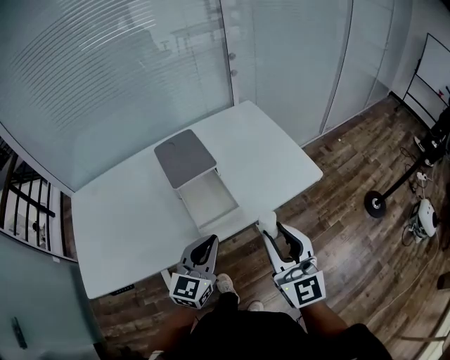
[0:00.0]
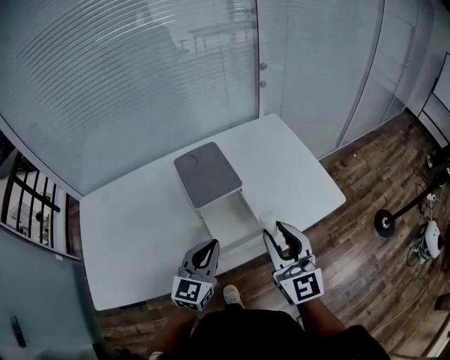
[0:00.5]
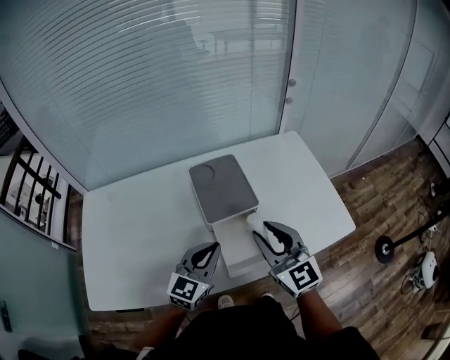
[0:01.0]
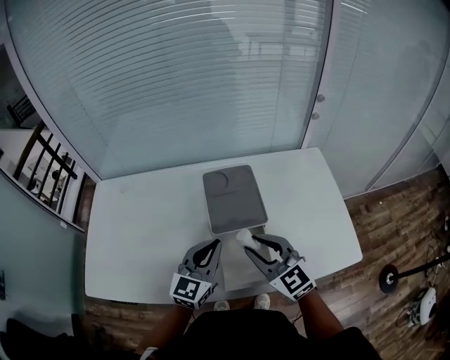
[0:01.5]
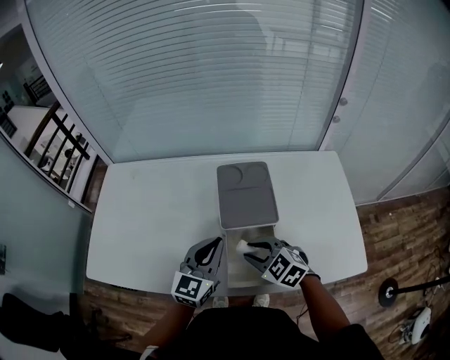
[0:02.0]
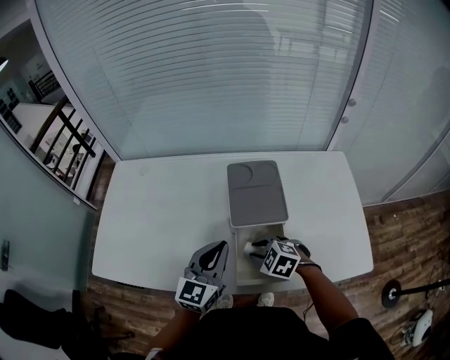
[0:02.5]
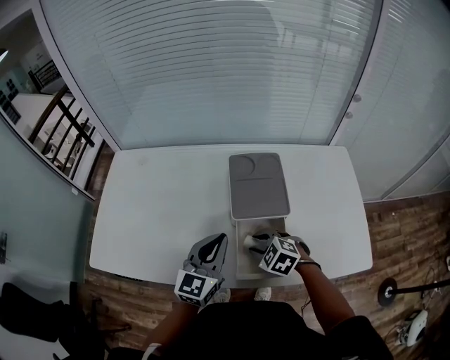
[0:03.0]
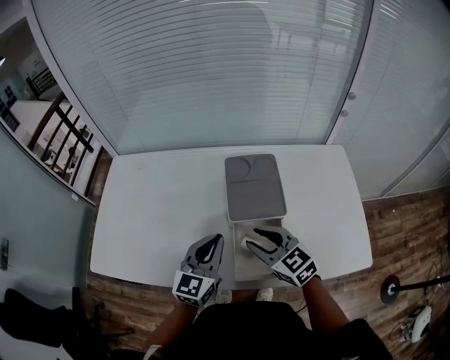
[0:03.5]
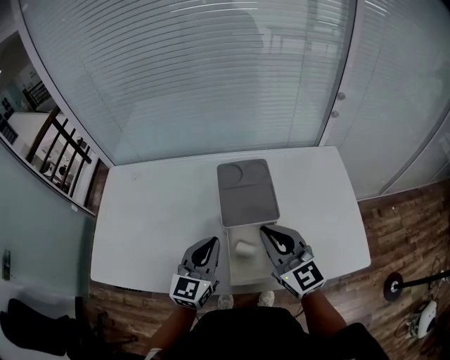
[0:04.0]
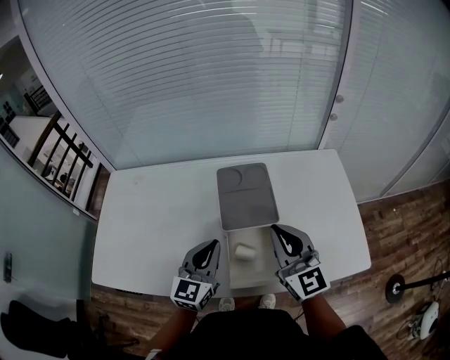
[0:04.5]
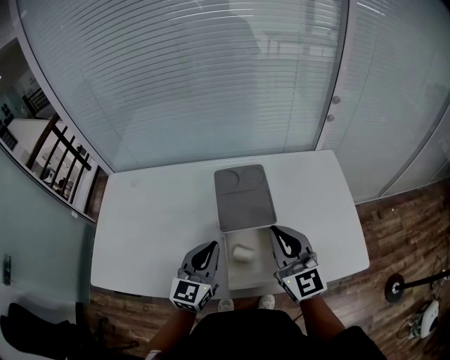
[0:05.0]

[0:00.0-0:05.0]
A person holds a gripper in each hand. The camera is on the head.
0:00.0 to 0:02.5: The right gripper moves roughly 35 cm, and angles its fingers downward, by about 70 degrees, while the left gripper changes place by about 20 cm, and turns by some 30 degrees.
0:02.5 to 0:05.0: The right gripper shifts roughly 25 cm upward, tips its fingers upward by about 60 degrees, and closes up.

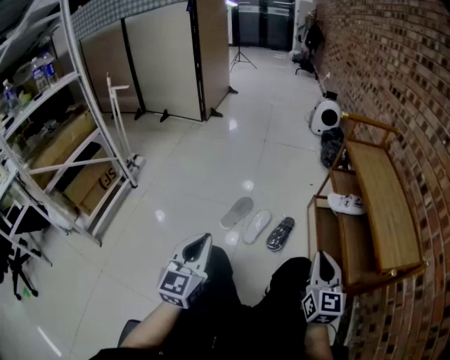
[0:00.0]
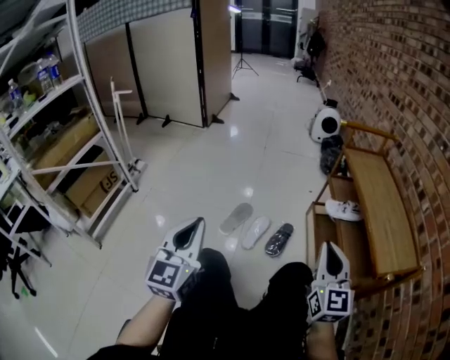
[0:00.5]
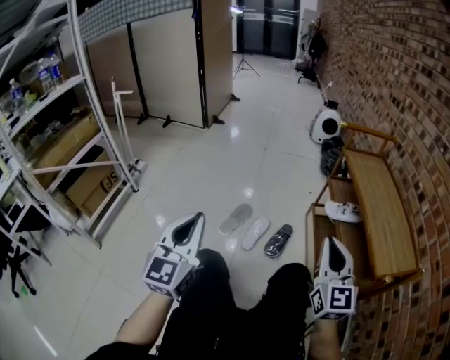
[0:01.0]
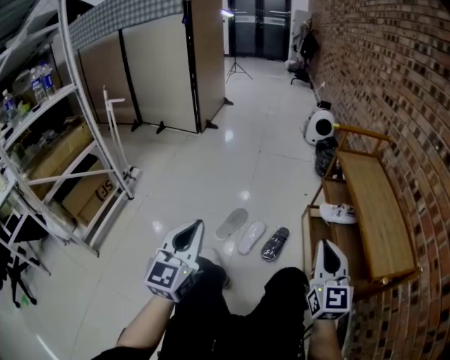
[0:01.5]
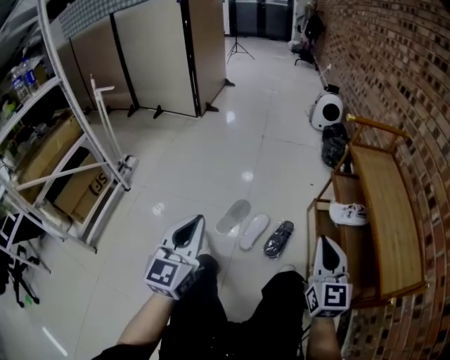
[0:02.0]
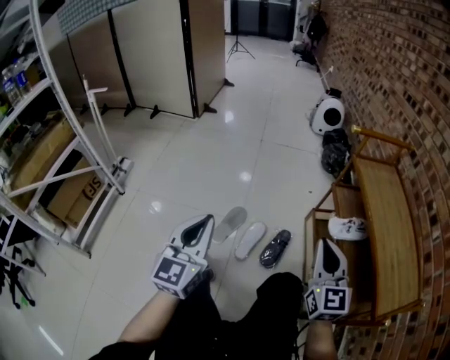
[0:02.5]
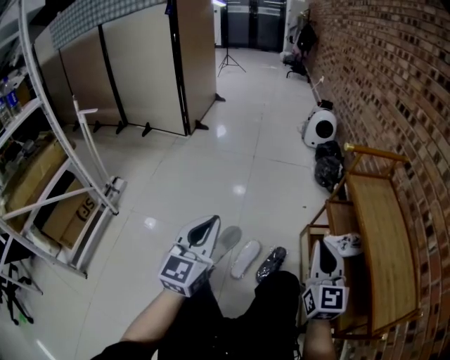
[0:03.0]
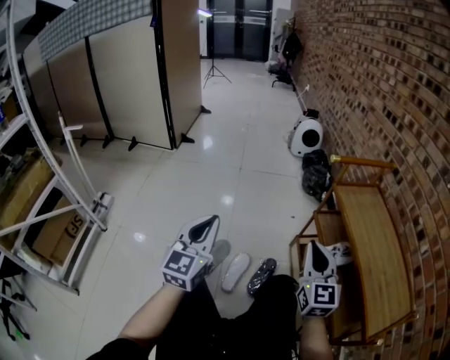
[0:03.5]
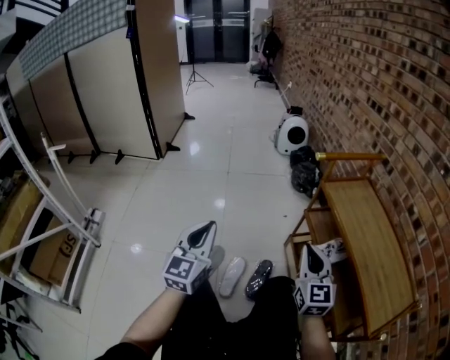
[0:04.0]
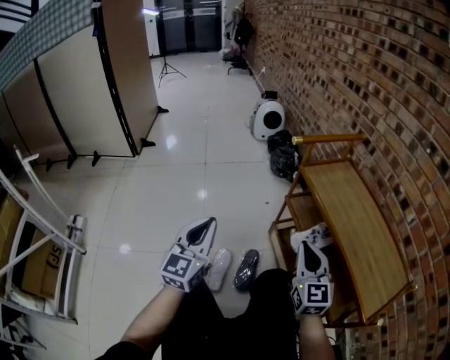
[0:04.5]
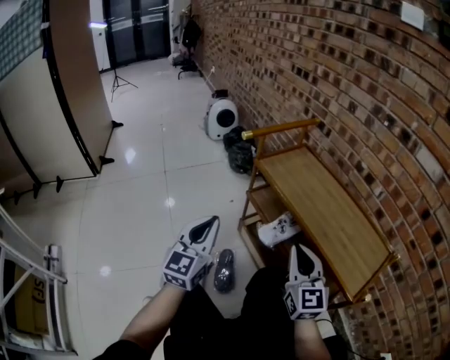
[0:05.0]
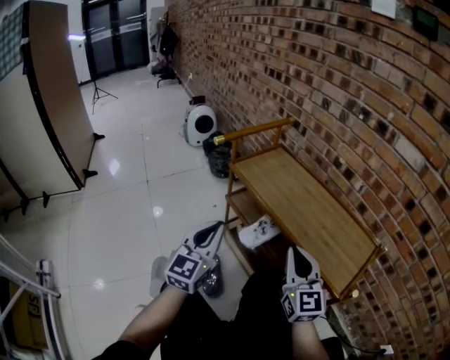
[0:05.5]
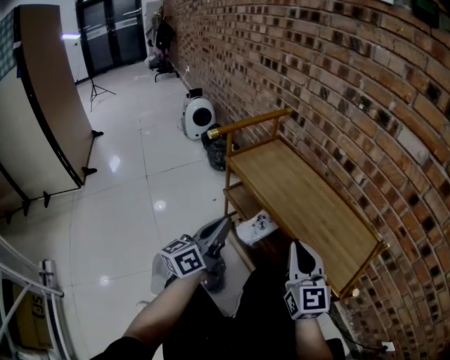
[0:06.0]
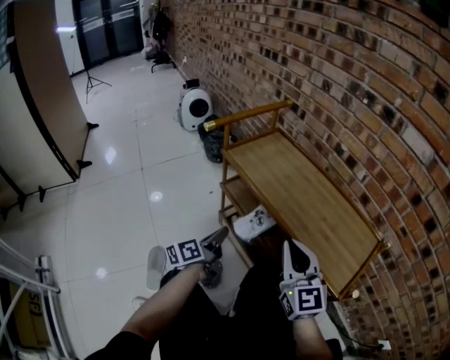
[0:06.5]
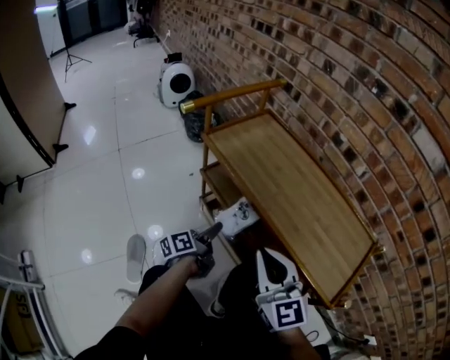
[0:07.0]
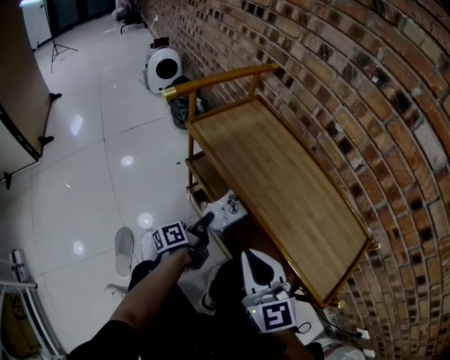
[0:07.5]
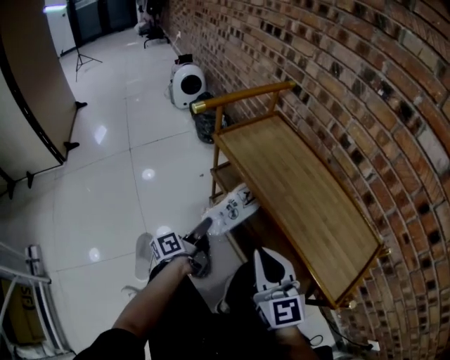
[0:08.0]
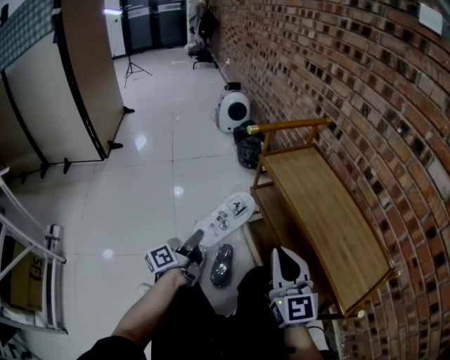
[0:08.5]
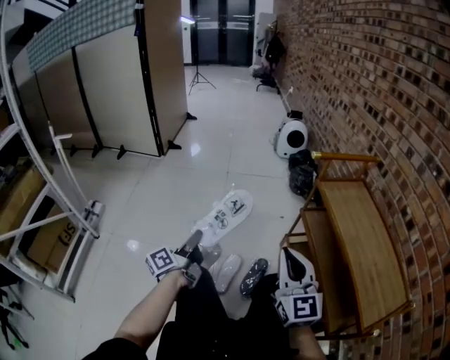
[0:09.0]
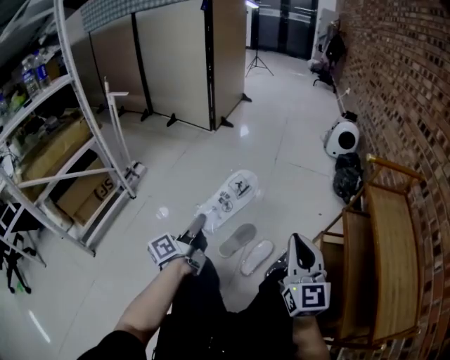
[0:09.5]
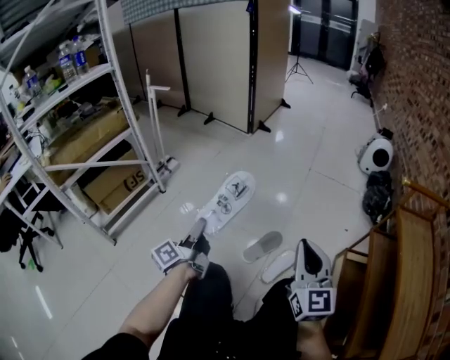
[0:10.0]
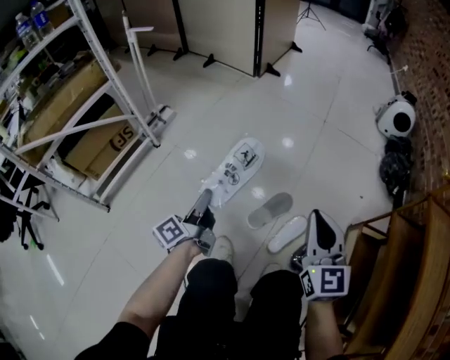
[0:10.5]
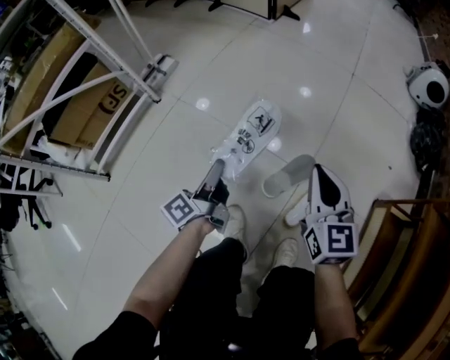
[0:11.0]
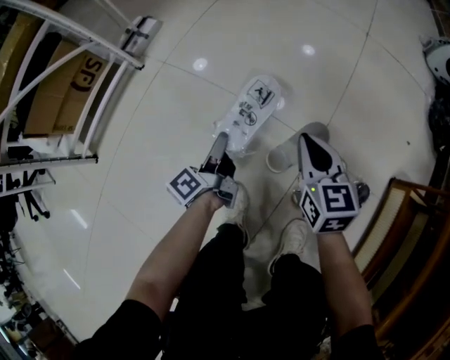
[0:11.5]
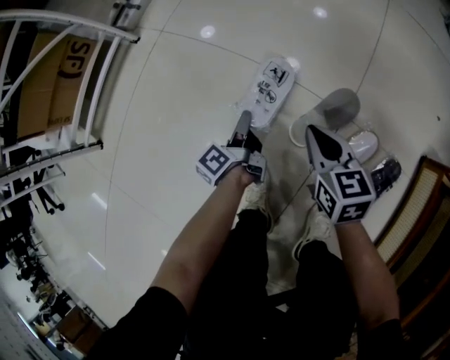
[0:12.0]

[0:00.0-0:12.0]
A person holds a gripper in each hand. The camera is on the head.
0:00.0 to 0:02.0: Both grippers move forward and upward, approximately 10 cm.
0:02.0 to 0:04.0: The grippers both shift forward by about 20 cm.
0:04.0 to 0:06.0: The left gripper moves some 30 cm, and rotates roughly 60 degrees. The right gripper moves roughly 20 cm, and swivels roughly 20 degrees.
0:06.0 to 0:08.0: The right gripper heads to the left, covering roughly 5 cm, while the left gripper moves downward, about 20 cm, and turns by some 40 degrees.
0:08.0 to 0:10.0: The left gripper moves about 60 cm, and changes its angle by about 70 degrees; the right gripper ends up some 35 cm from where it was, and rotates roughly 40 degrees.
0:10.0 to 0:12.0: The left gripper goes roughly 50 cm downward, and rotates roughly 30 degrees; the right gripper travels downward and forward by approximately 50 cm, and points its fingers roughly 40 degrees further downward.

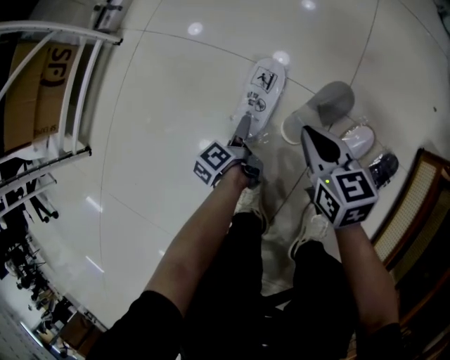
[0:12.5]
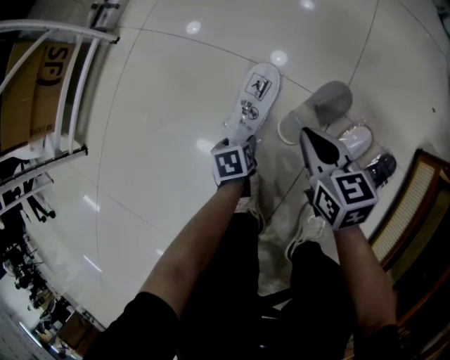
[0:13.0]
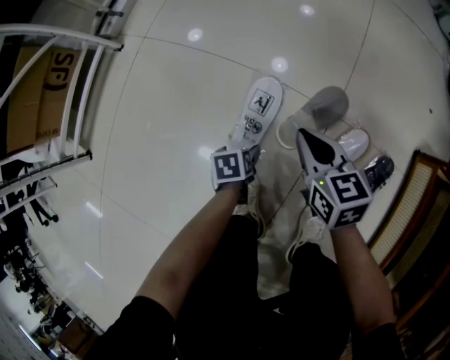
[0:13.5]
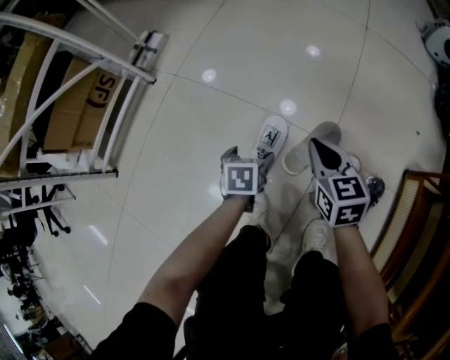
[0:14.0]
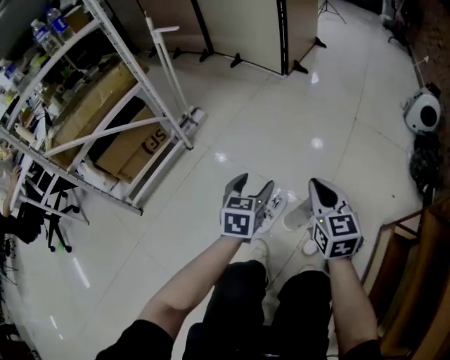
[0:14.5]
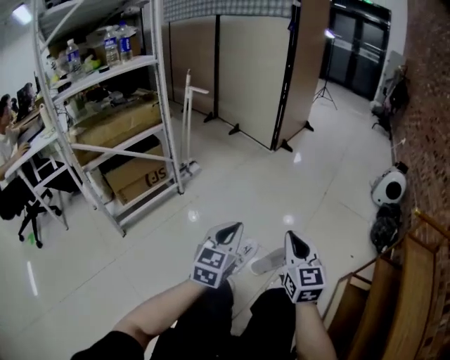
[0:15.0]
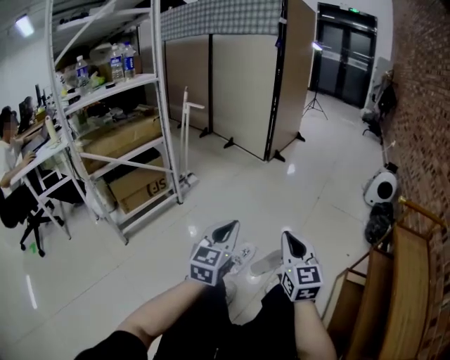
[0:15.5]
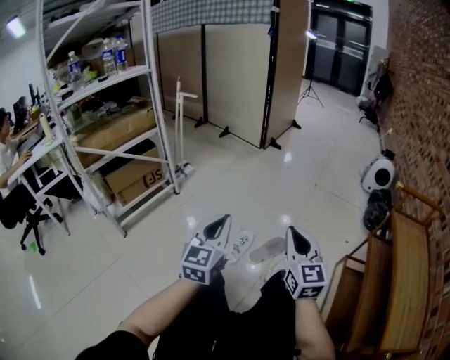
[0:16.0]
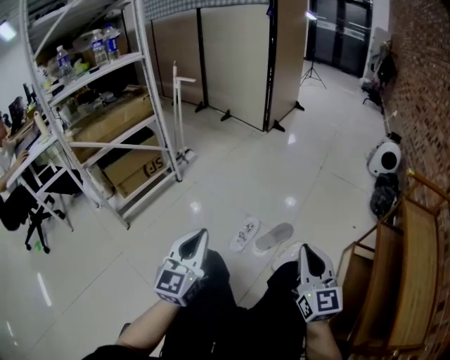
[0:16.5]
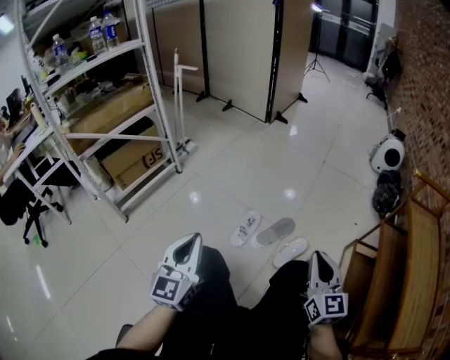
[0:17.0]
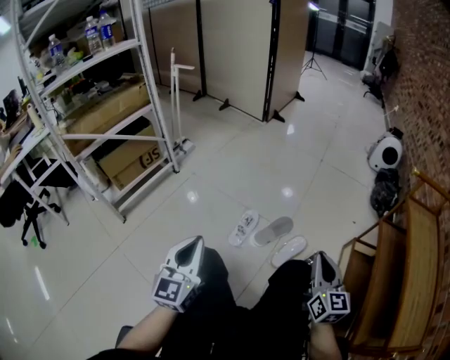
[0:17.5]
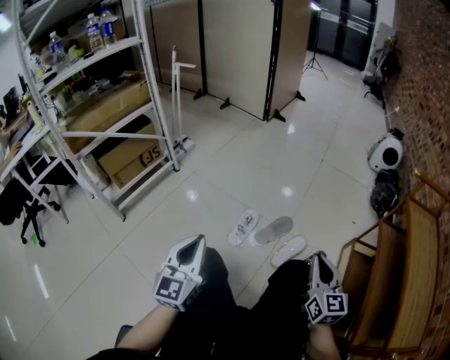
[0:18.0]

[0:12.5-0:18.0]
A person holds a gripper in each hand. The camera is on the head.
0:12.5 to 0:14.5: The two grippers go some 40 cm upward. The right gripper swivels some 30 degrees. Meanwhile the left gripper rotates around the line of its fingers by some 80 degrees, clockwise from behind.
0:14.5 to 0:16.0: Both grippers move backward and upward, about 30 cm. The left gripper rotates some 30 degrees, and closes up.
0:16.0 to 0:18.0: The left gripper travels downward, to the left and backward by about 10 cm. The right gripper travels downward and to the right by some 15 cm.

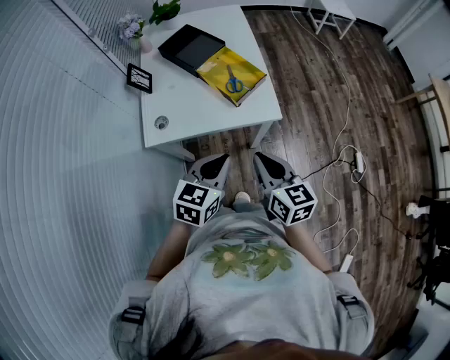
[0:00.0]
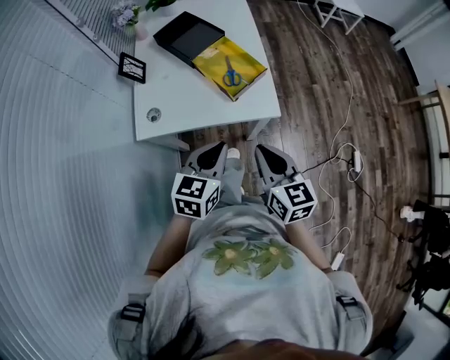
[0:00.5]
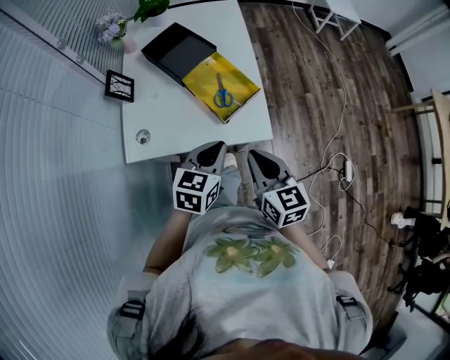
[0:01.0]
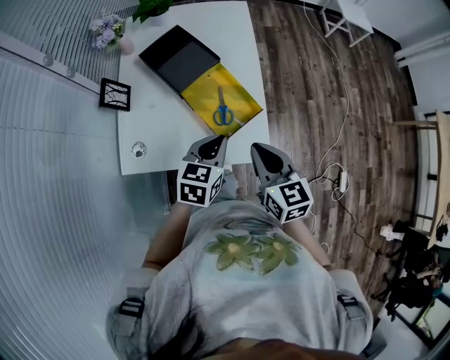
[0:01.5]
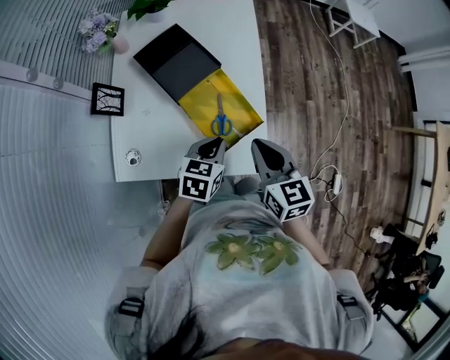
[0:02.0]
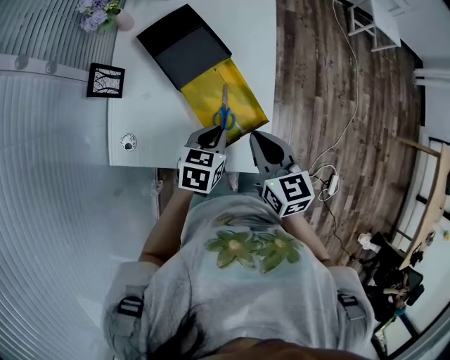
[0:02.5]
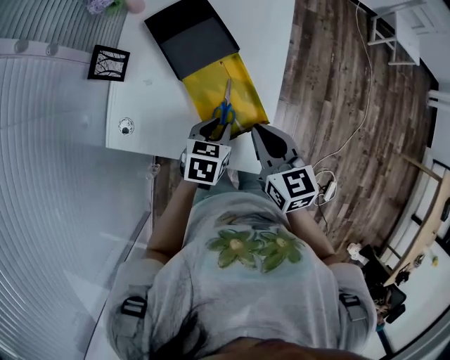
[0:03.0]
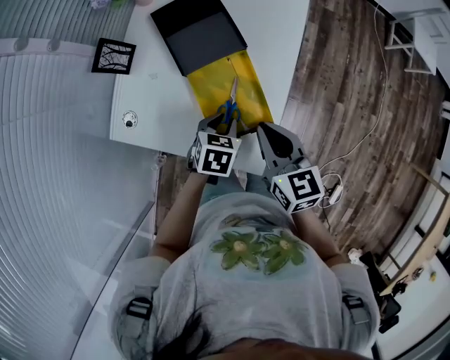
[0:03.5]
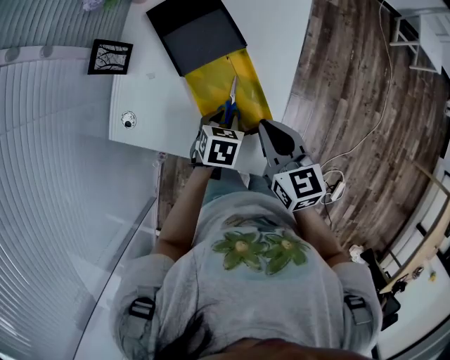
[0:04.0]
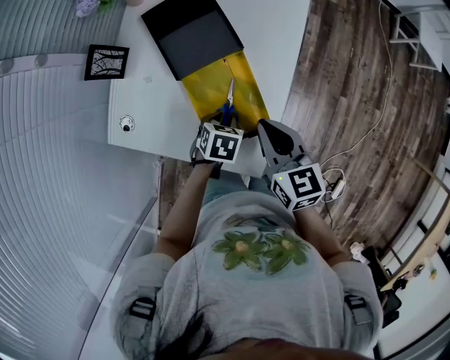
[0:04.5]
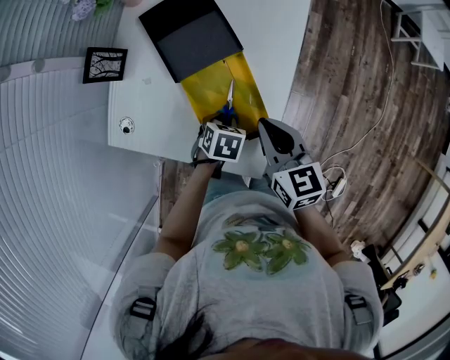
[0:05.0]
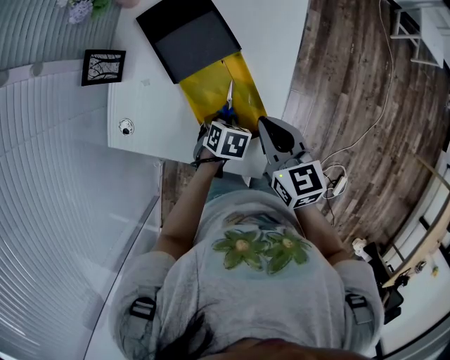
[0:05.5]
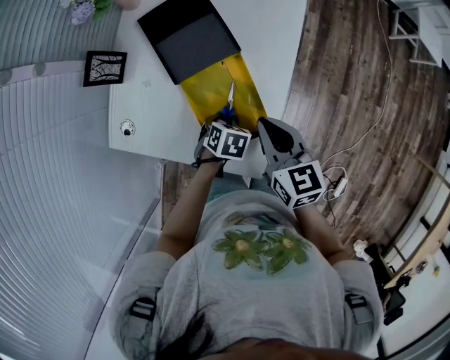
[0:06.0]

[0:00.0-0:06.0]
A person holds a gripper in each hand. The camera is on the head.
0:00.0 to 0:02.0: Both grippers travel together forward, roughly 30 cm.
0:02.0 to 0:04.0: The right gripper shifts about 10 cm forward and downward; the left gripper goes roughly 15 cm downward and forward, changes its angle by some 30 degrees, and opens.
0:04.0 to 0:06.0: The grippers move only a little.
